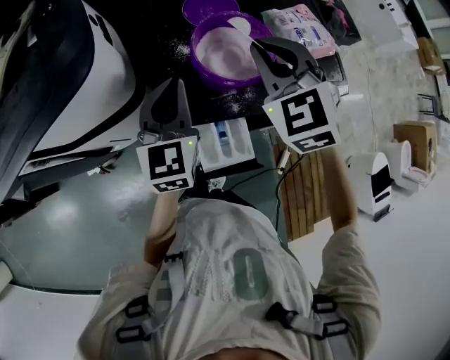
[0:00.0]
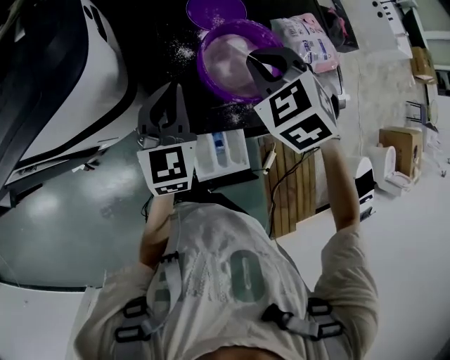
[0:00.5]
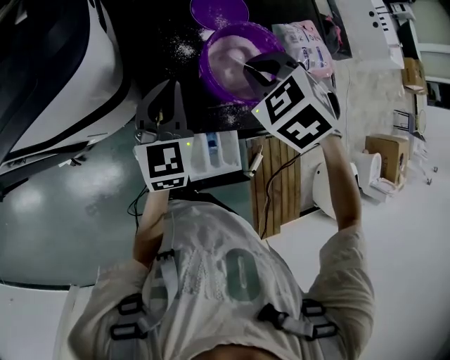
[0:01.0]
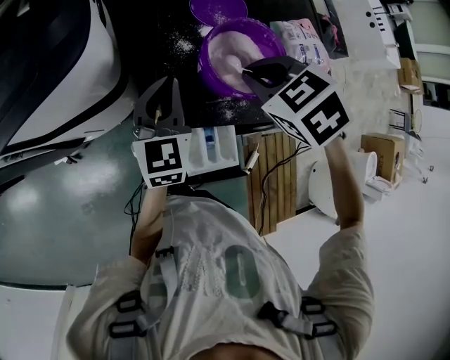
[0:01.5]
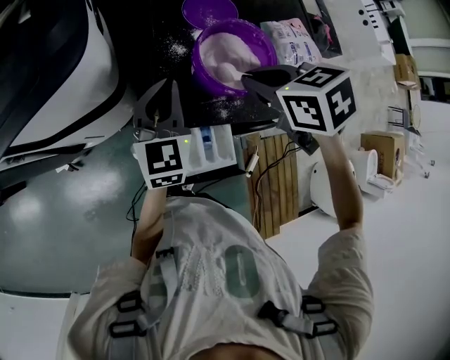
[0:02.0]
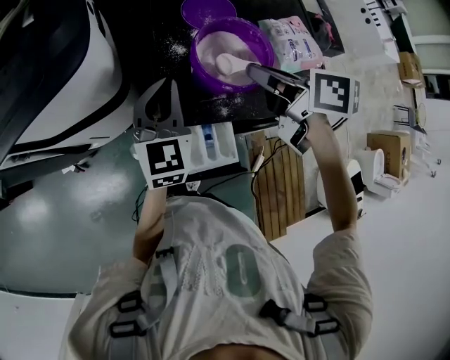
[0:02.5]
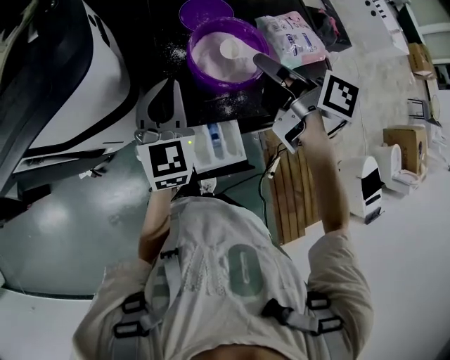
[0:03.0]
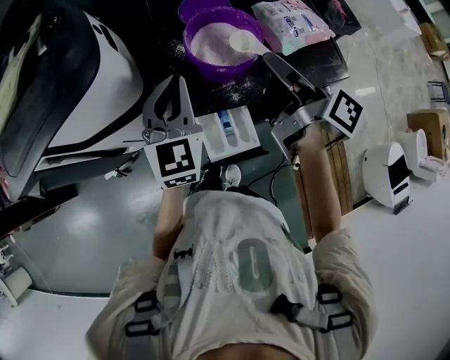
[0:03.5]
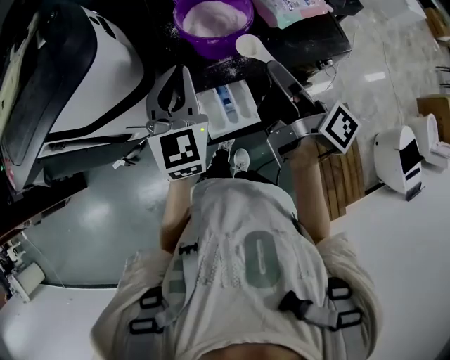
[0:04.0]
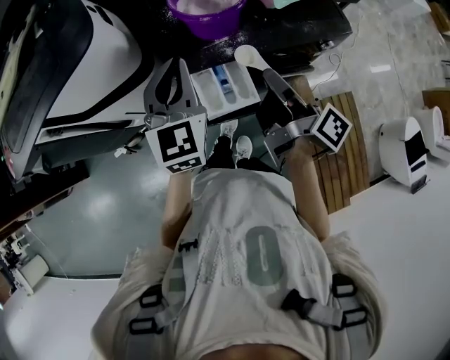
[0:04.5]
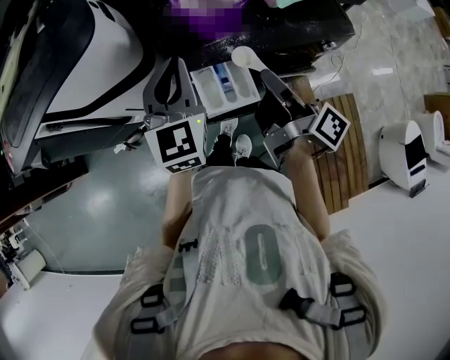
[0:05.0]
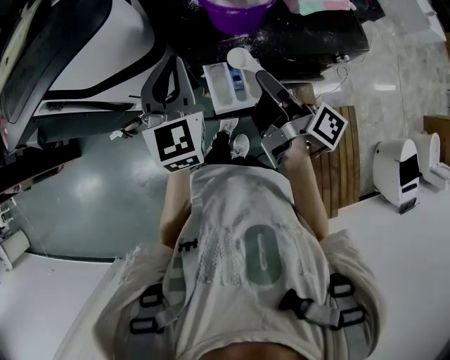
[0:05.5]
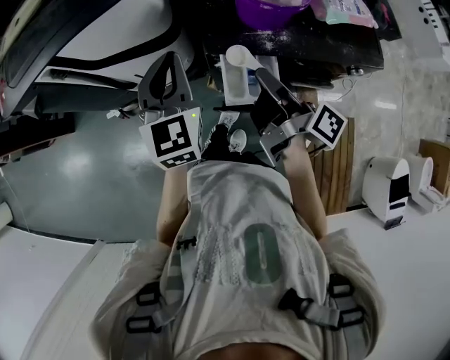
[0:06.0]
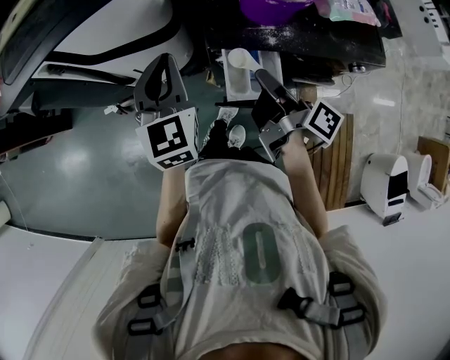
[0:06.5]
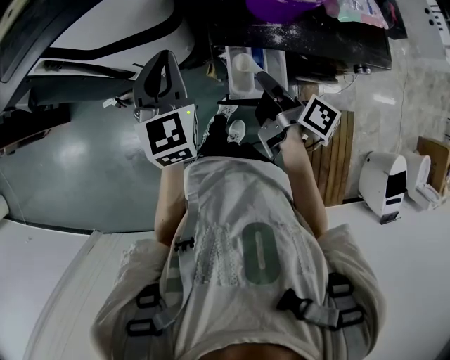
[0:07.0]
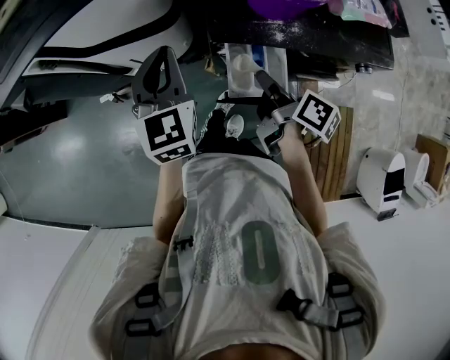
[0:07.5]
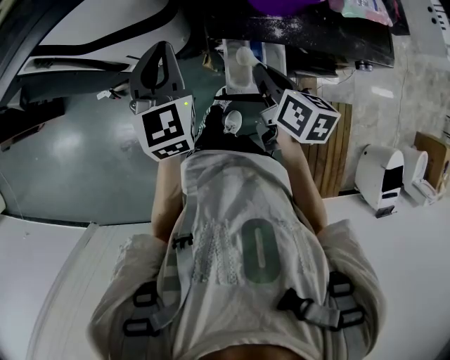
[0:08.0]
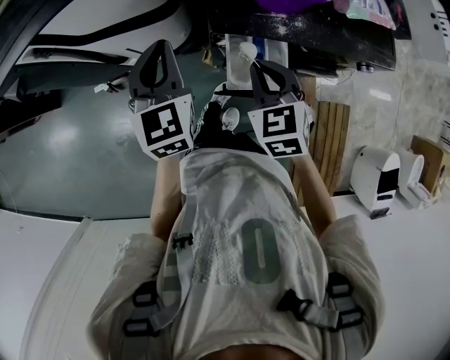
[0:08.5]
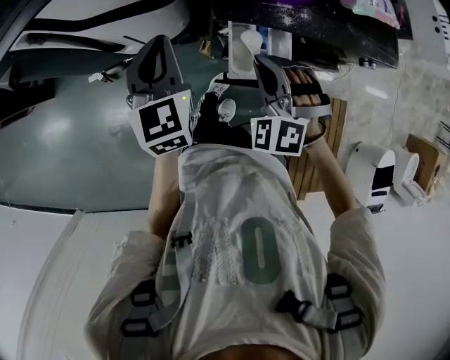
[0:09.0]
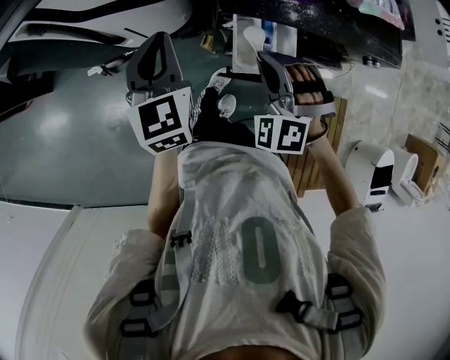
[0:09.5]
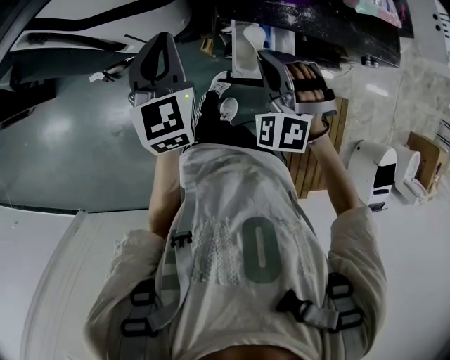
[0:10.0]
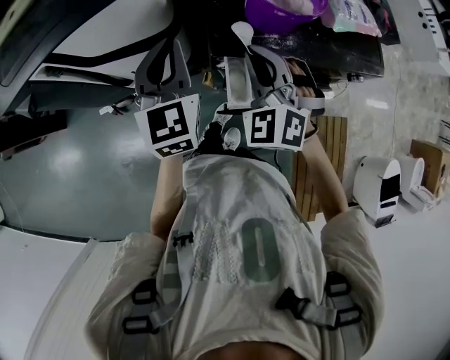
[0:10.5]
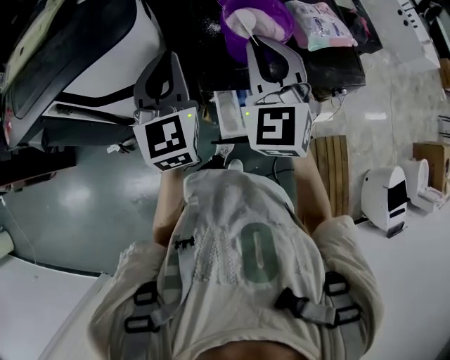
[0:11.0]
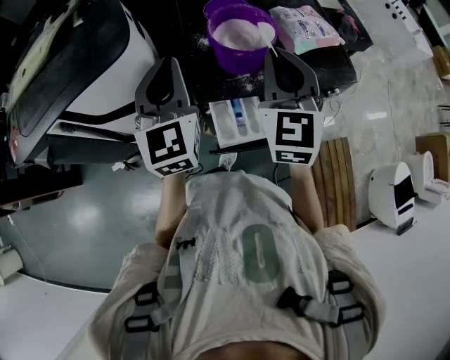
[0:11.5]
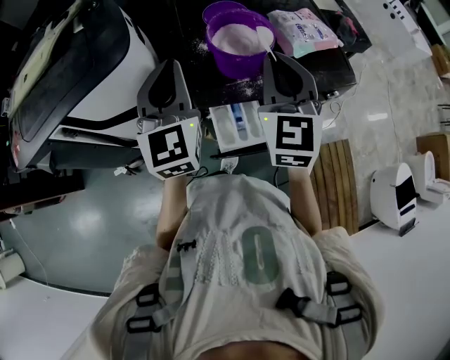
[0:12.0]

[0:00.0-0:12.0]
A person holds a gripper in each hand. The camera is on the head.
0.0 to 2.0 s: The right gripper moves roughly 5 cm, and changes its angle by some 50 degrees.
2.0 to 4.0 s: The left gripper shifts some 10 cm backward and upward. The right gripper moves backward and to the right, some 15 cm, and points its fingers roughly 60 degrees further upward.
4.0 to 6.0 s: The left gripper travels to the left by approximately 10 cm. The right gripper shifts some 15 cm to the left and downward, and changes its angle by some 20 degrees.
6.0 to 8.0 s: The right gripper goes roughly 10 cm downward, and tilts its fingers about 30 degrees downward. Meanwhile the left gripper shifts by approximately 5 cm.
8.0 to 10.0 s: The right gripper rolls counterclockwise, seen from behind, by about 110 degrees.
10.0 to 12.0 s: The right gripper heads upward and to the right, covering roughly 25 cm, and rolls clockwise, seen from behind, by some 60 degrees; the left gripper goes some 20 cm upward, to the right and forward, and turns by approximately 20 degrees.

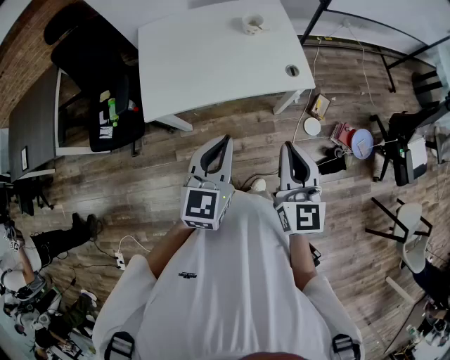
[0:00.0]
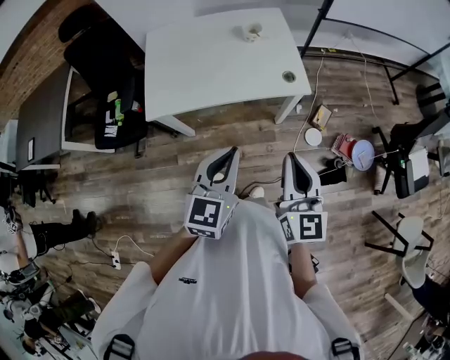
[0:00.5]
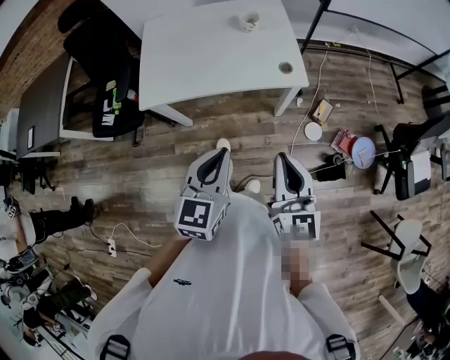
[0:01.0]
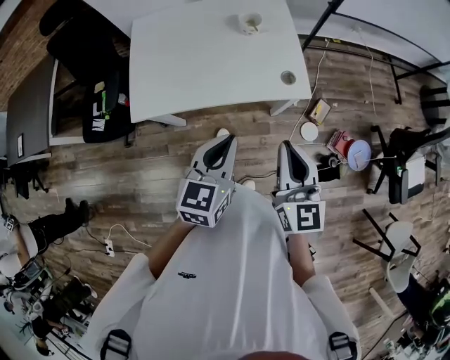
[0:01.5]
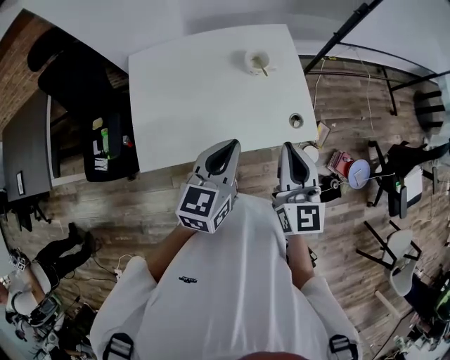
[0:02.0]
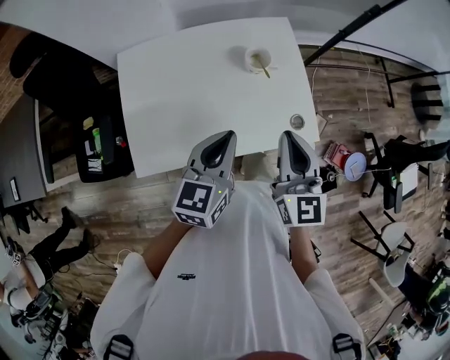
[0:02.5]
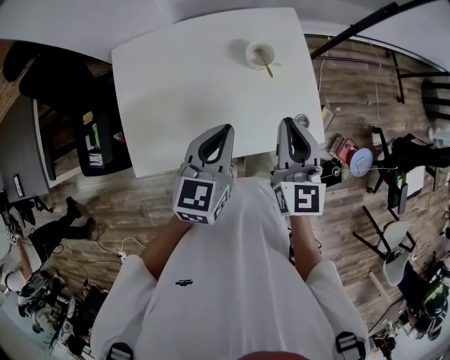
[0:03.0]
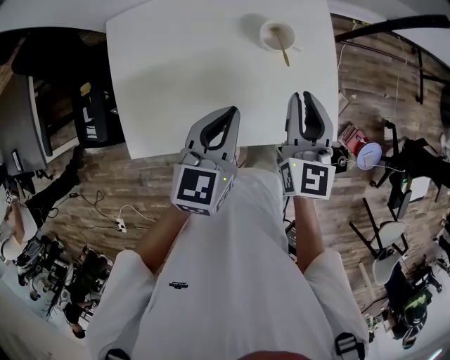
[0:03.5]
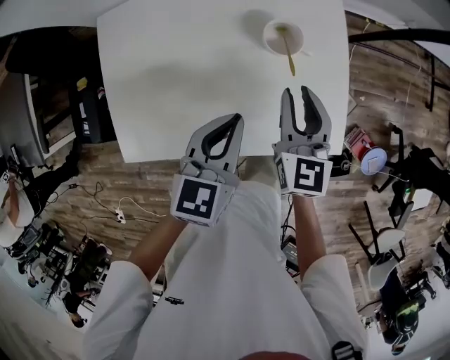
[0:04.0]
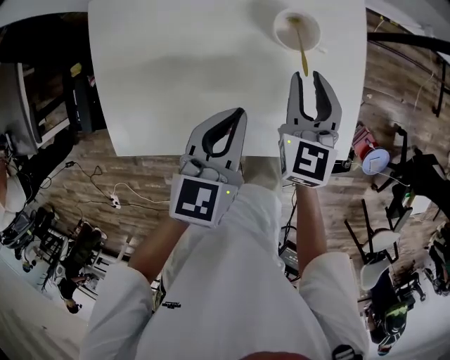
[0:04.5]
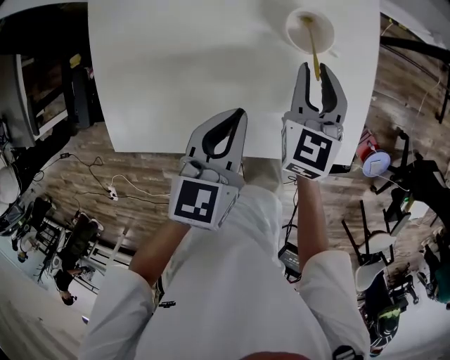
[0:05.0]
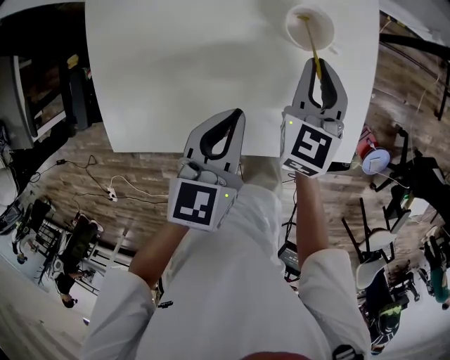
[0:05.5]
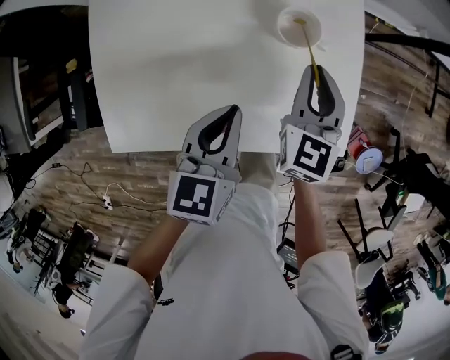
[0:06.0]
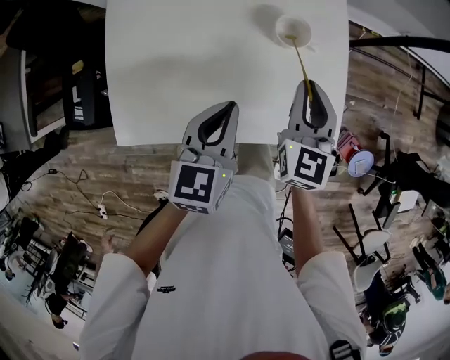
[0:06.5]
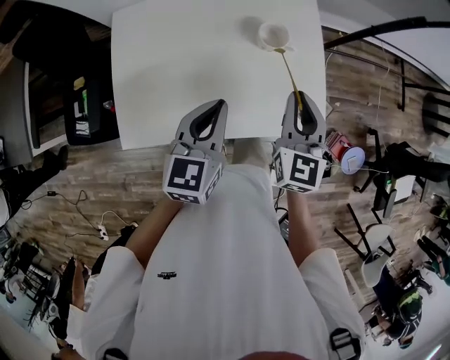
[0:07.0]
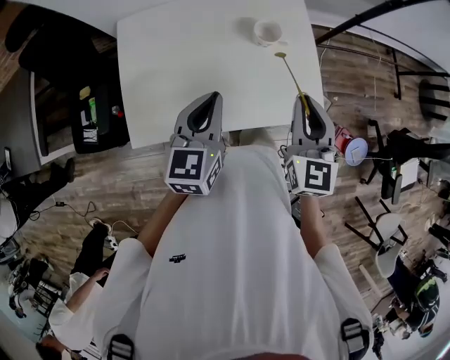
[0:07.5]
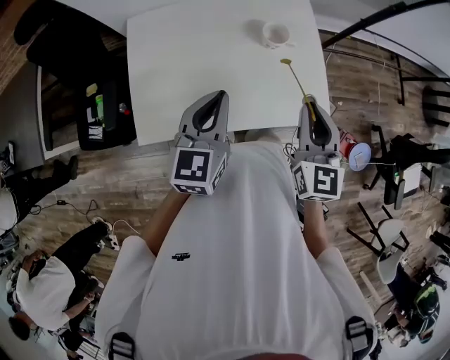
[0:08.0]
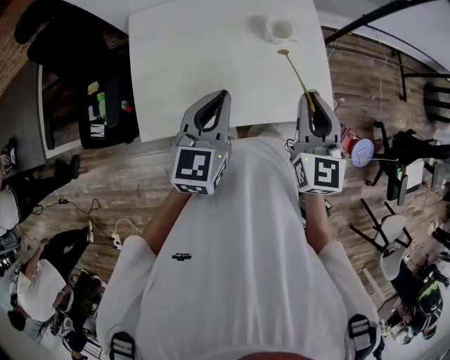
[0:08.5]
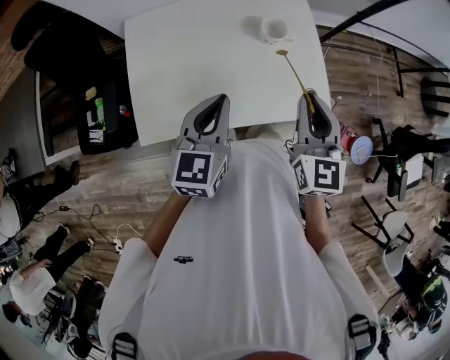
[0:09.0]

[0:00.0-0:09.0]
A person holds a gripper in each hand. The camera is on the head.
0.0 to 2.0 s: Both grippers move forward, about 25 cm.
2.0 to 4.5 s: The left gripper goes roughly 25 cm downward and forward, and rotates approximately 20 degrees, while the right gripper goes roughly 35 cm forward and downward, changes its angle by some 20 degrees, and opens its fingers.
4.5 to 7.0 s: Both grippers move upward and backward, about 15 cm.
7.0 to 9.0 s: The right gripper travels backward and upward by approximately 10 cm. The left gripper moves backward, approximately 5 cm.

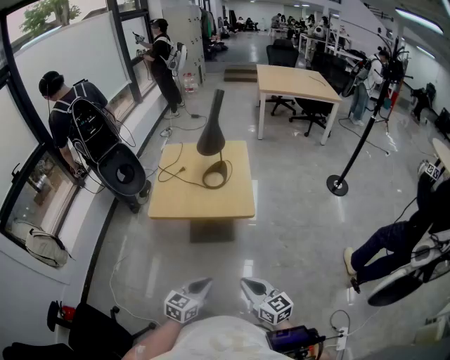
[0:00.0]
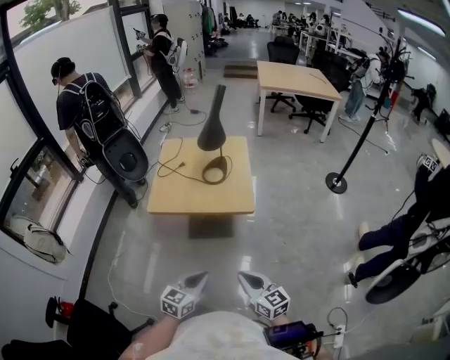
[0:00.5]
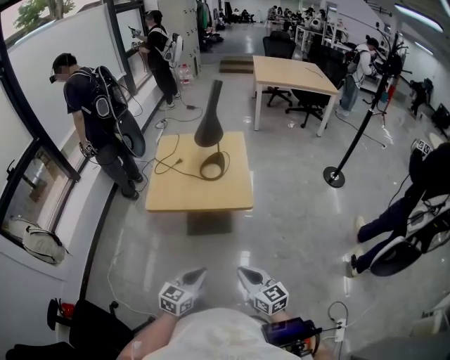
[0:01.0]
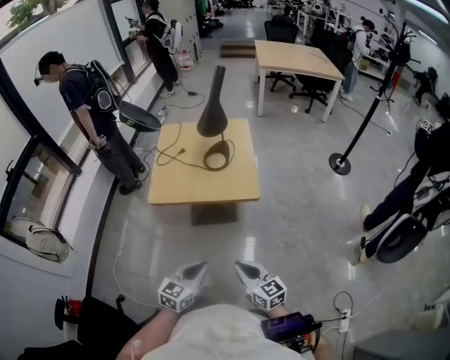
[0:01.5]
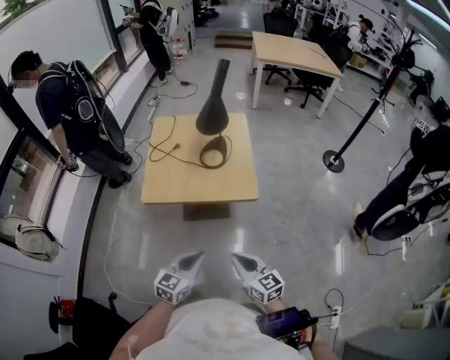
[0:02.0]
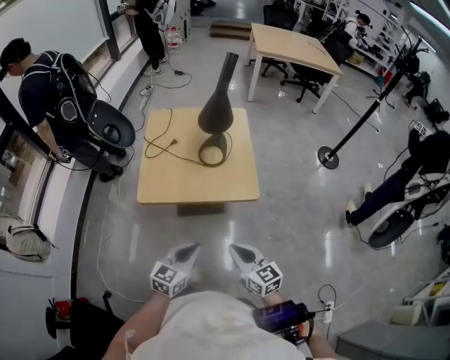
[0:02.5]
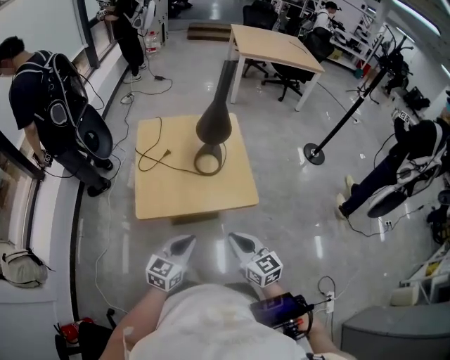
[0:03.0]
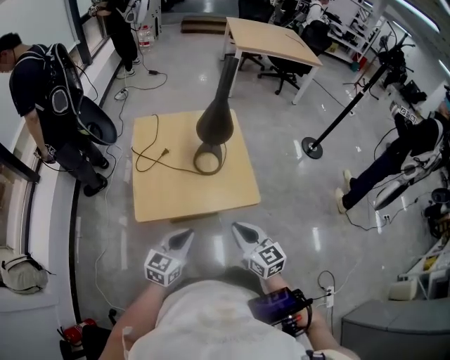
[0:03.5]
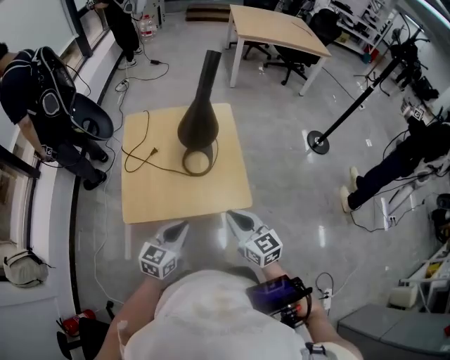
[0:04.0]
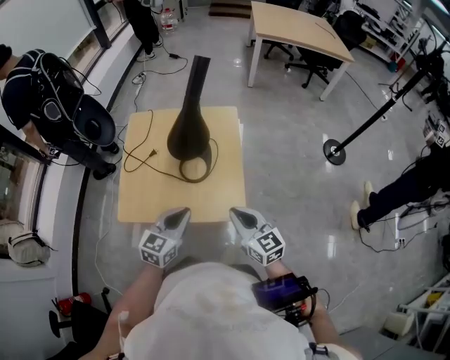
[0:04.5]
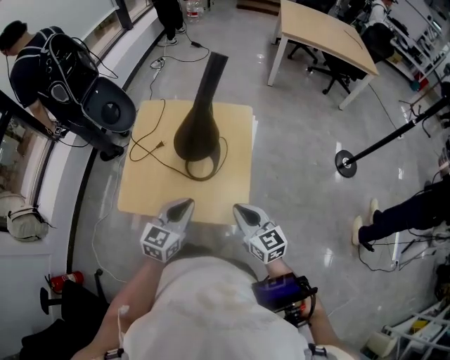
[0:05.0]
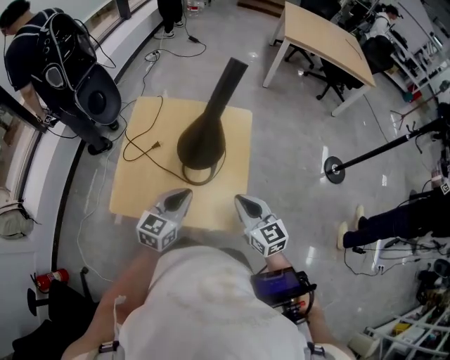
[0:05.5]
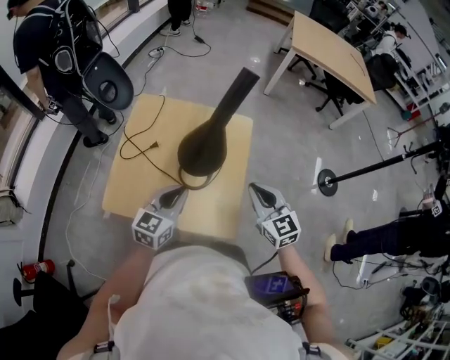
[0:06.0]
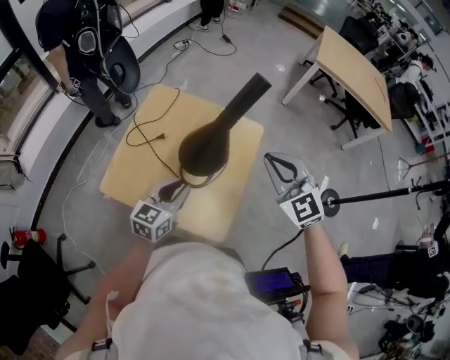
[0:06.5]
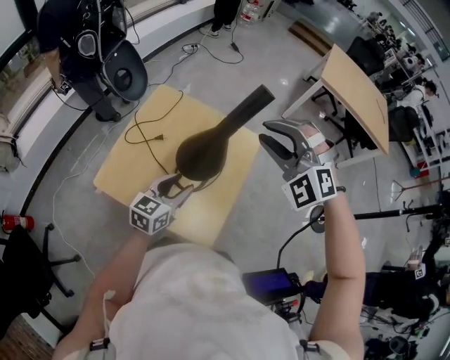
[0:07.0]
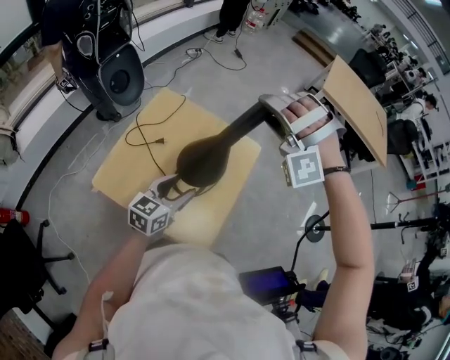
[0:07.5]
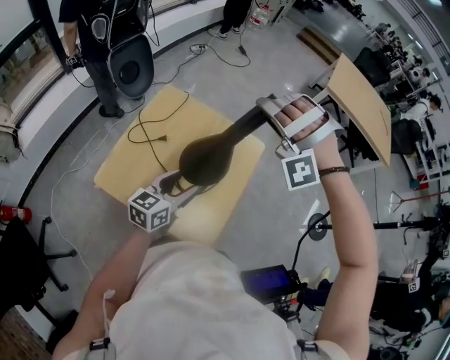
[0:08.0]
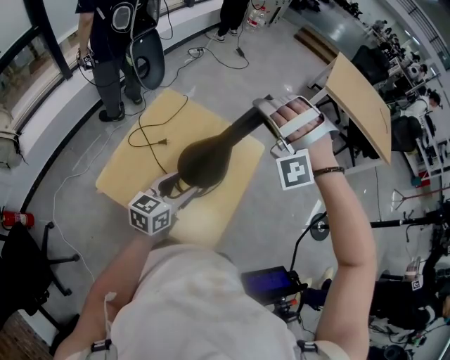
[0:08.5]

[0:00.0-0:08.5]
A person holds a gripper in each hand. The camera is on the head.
0.0 to 2.0 s: The two grippers go some 10 cm forward and to the left.
2.0 to 4.0 s: Both grippers move forward, roughly 20 cm.
4.0 to 6.5 s: The left gripper goes some 20 cm forward, and rotates some 30 degrees, while the right gripper heads forward and upward, covering roughly 30 cm, and rotates around the line of its fingers by about 40 degrees, counterclockwise from behind.
6.5 to 8.5 s: The left gripper opens up. Meanwhile the right gripper heads forward, to the left and upward, covering roughly 15 cm, rotates around the line of its fingers by about 90 degrees, counterclockwise from behind, and opens.
